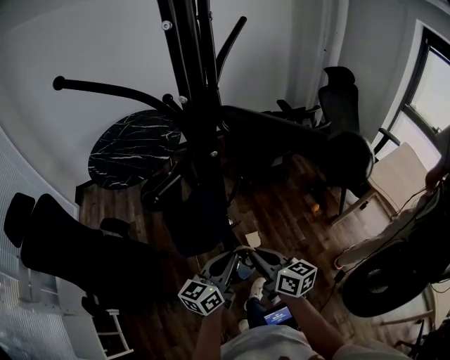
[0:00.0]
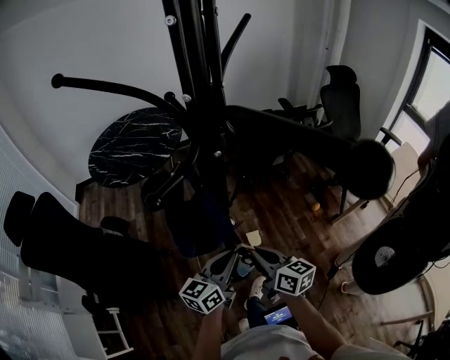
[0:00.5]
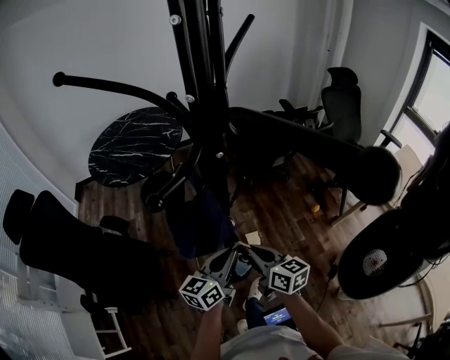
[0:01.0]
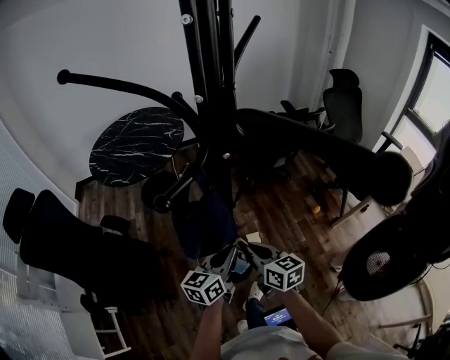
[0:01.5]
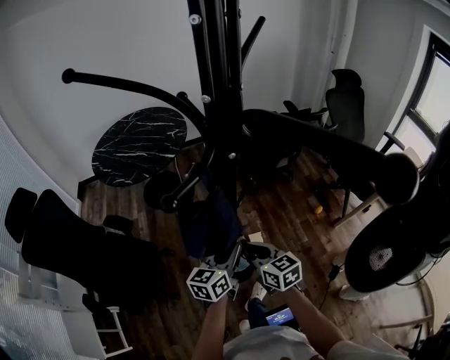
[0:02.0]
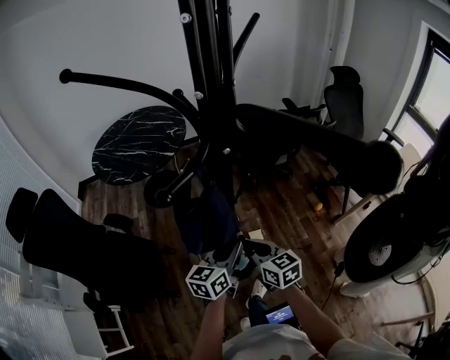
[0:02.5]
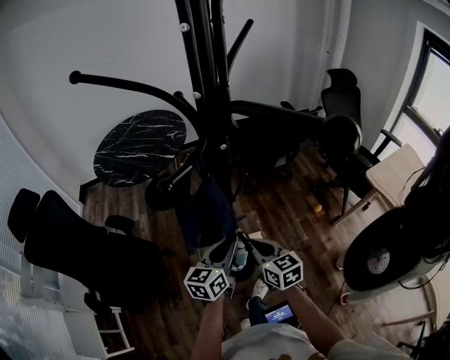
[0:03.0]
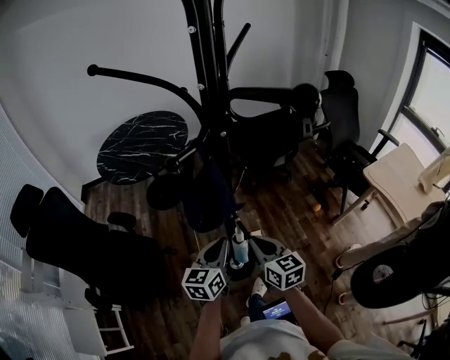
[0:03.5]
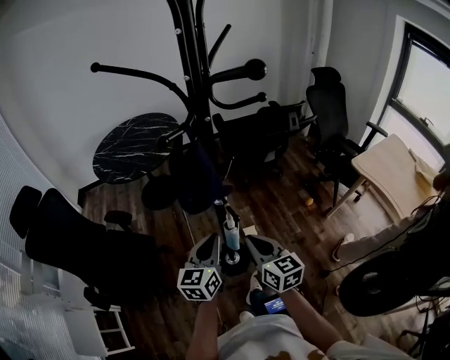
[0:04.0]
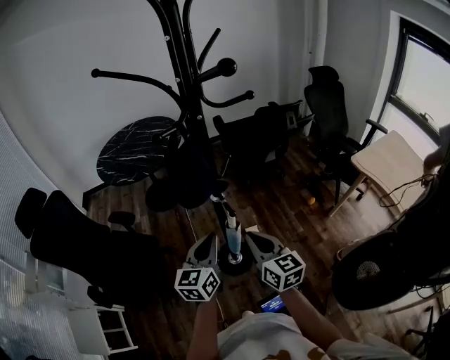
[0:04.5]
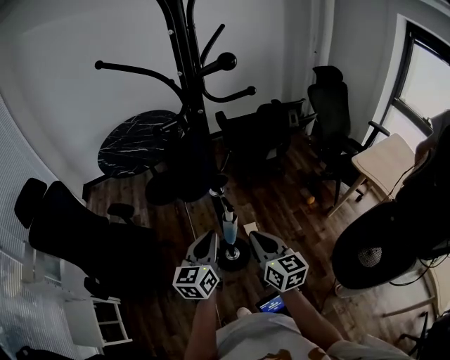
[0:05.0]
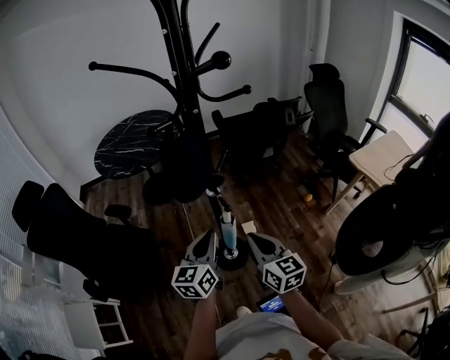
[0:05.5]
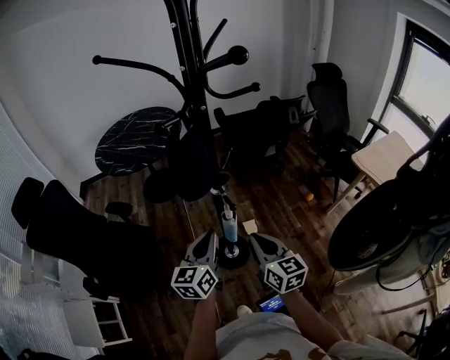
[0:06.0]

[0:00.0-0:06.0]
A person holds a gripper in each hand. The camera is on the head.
0:00.0 to 0:02.0: The left gripper moves roughly 5 cm. Meanwhile the right gripper moves about 5 cm.
0:02.0 to 0:04.0: Both grippers travel together backward and upward, approximately 10 cm.
0:04.0 to 0:06.0: The grippers make only small movements.

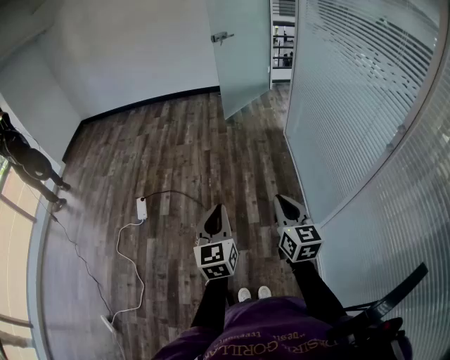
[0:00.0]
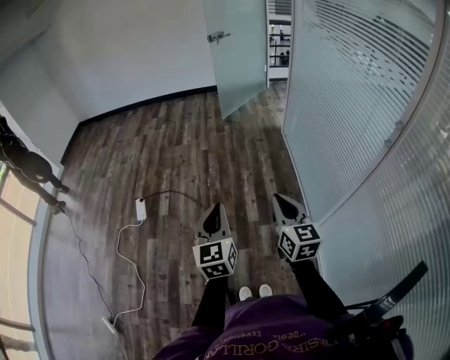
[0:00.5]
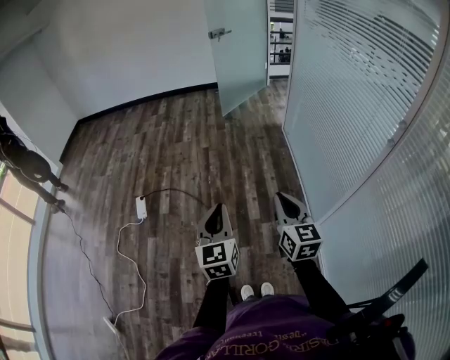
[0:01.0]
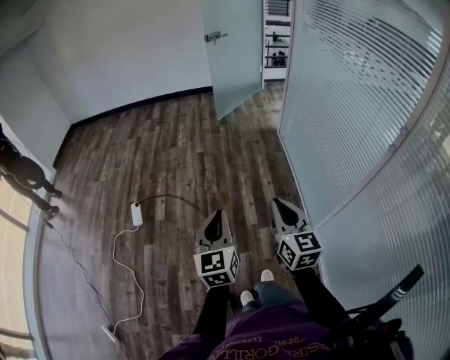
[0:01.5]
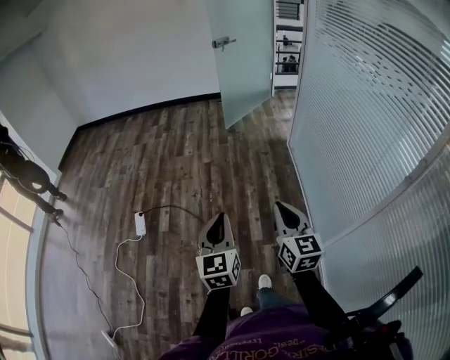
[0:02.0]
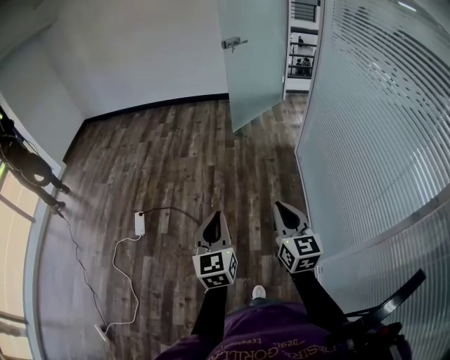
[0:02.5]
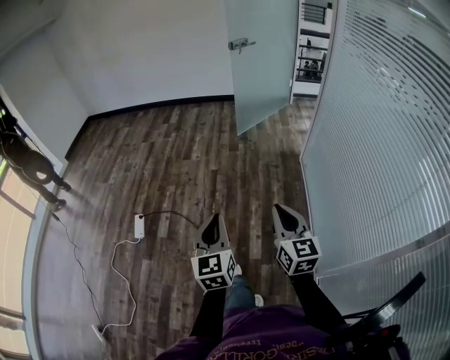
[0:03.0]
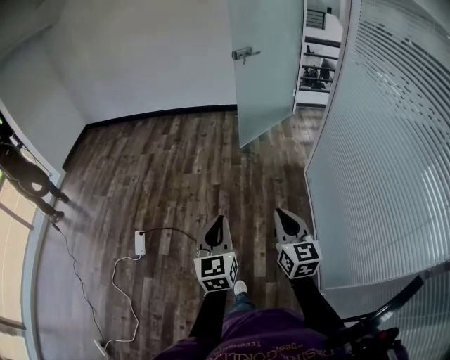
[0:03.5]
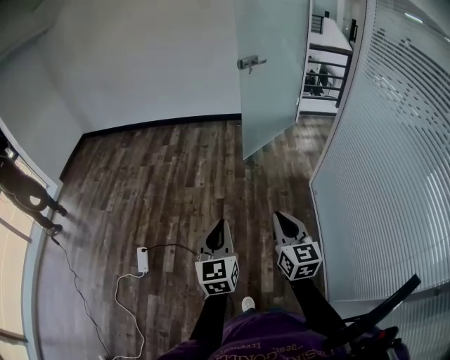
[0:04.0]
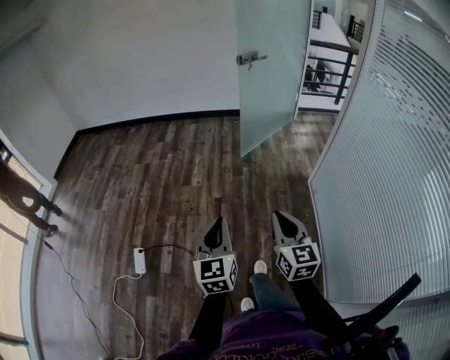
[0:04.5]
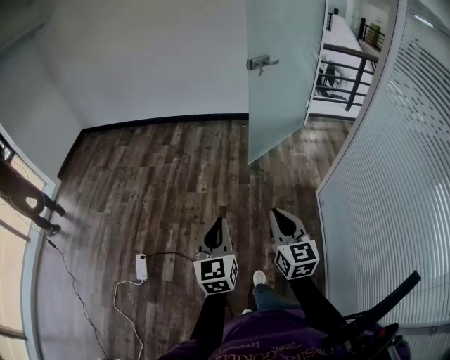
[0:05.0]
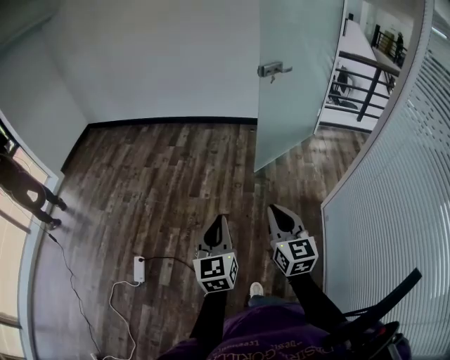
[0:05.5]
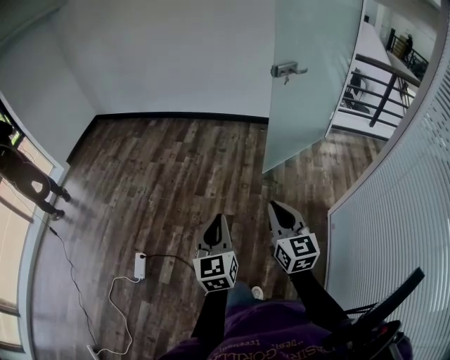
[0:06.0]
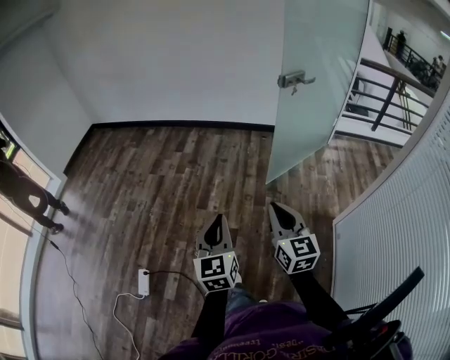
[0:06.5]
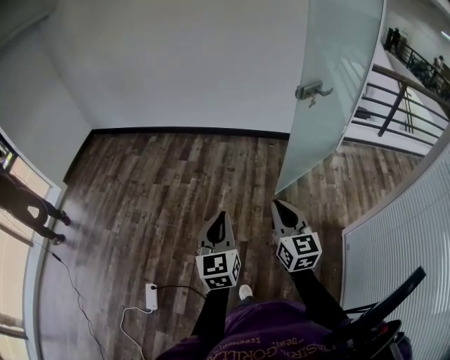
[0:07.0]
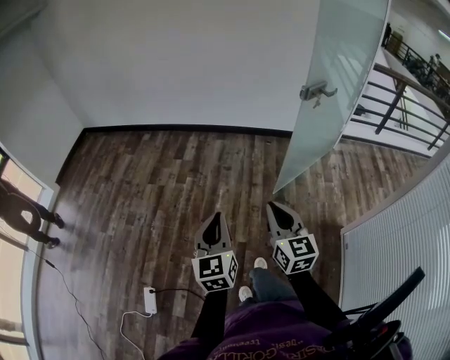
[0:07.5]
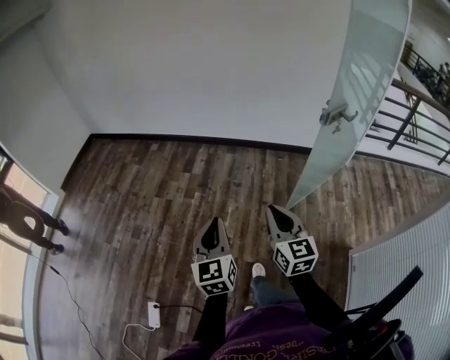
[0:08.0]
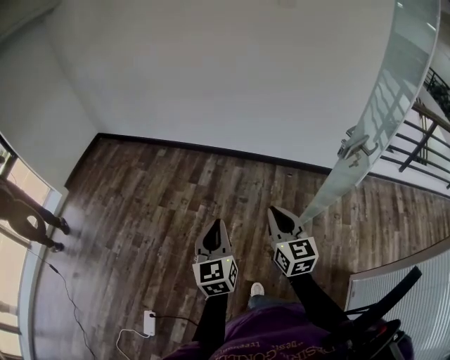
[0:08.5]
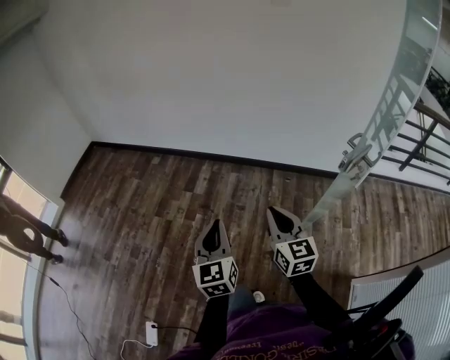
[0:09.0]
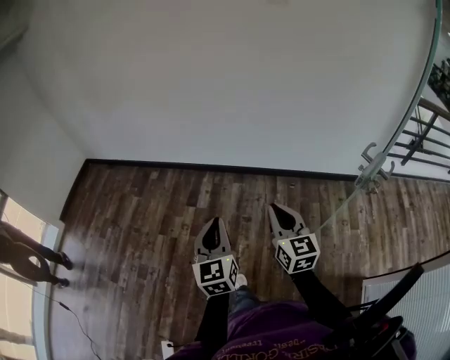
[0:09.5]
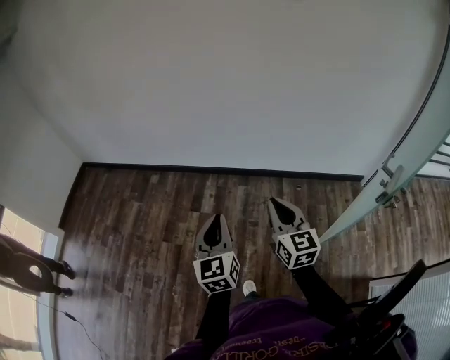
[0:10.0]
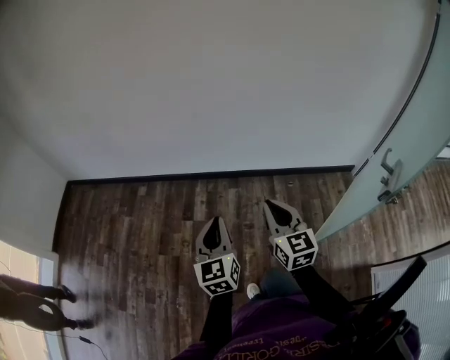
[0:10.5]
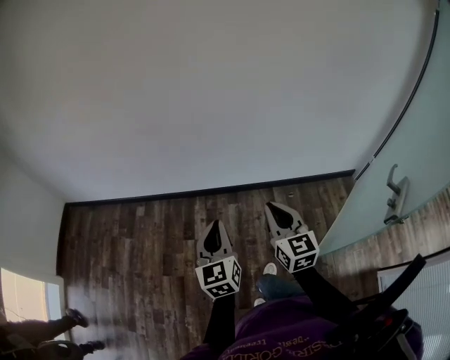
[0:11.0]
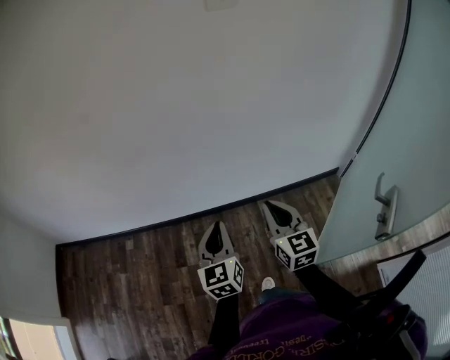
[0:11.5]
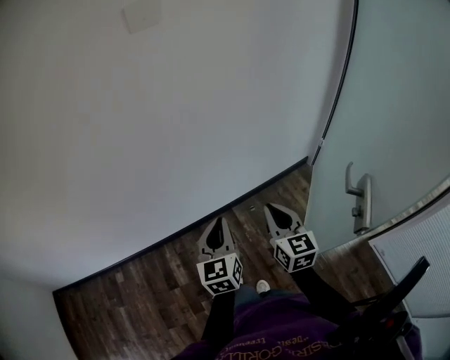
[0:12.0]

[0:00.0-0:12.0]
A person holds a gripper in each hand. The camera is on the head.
0:00.0 to 0:02.0: Both grippers move forward, about 10 cm.
0:02.0 to 0:04.0: Both grippers move forward, some 35 cm.
0:04.0 to 0:06.0: Both grippers move forward, about 30 cm.
0:06.0 to 0:08.0: The pair of grippers is taken forward, roughly 40 cm.
0:08.0 to 0:10.0: Both grippers are carried forward, some 40 cm.
0:10.0 to 0:12.0: The left gripper moves some 40 cm, and rotates some 30 degrees. The right gripper shifts by some 30 cm, and changes its angle by about 30 degrees.

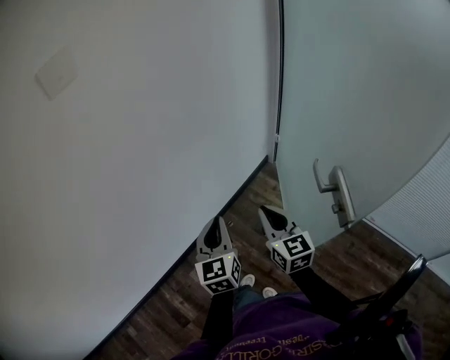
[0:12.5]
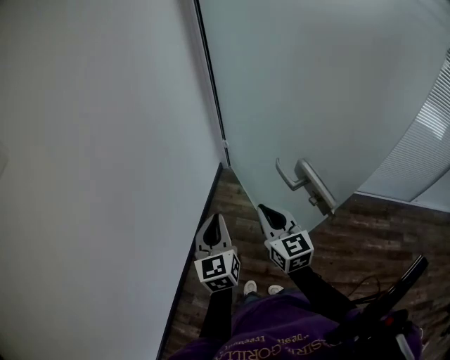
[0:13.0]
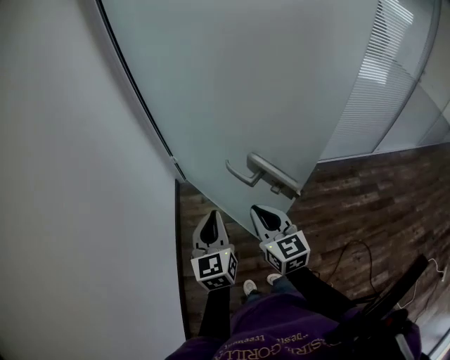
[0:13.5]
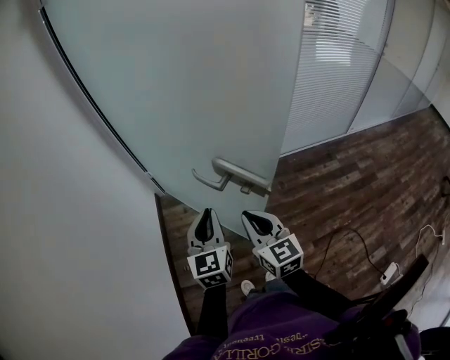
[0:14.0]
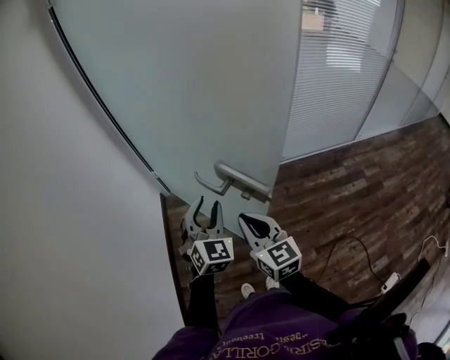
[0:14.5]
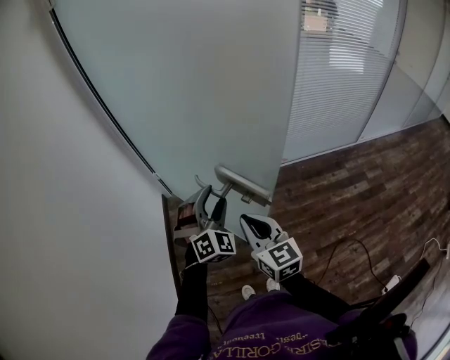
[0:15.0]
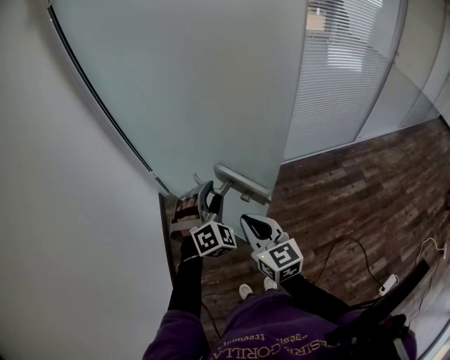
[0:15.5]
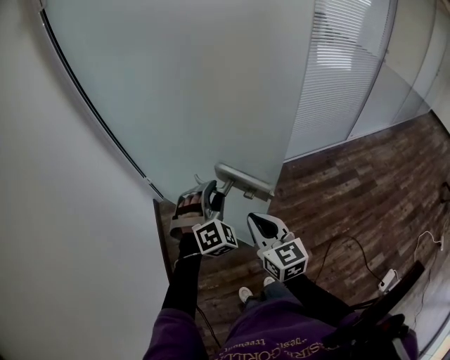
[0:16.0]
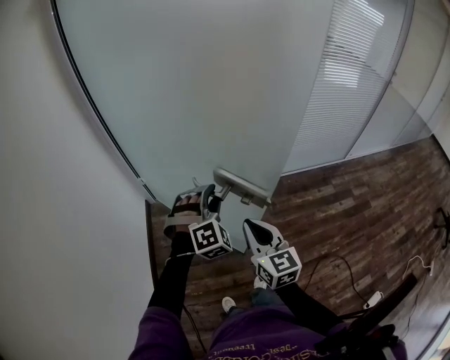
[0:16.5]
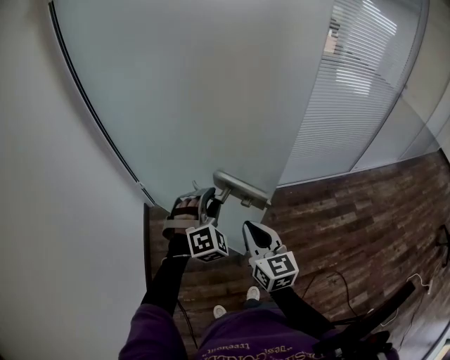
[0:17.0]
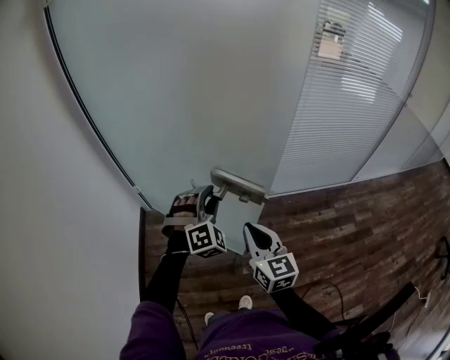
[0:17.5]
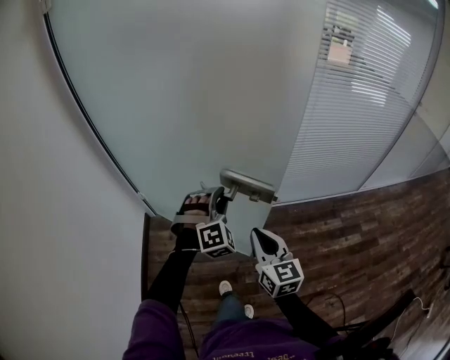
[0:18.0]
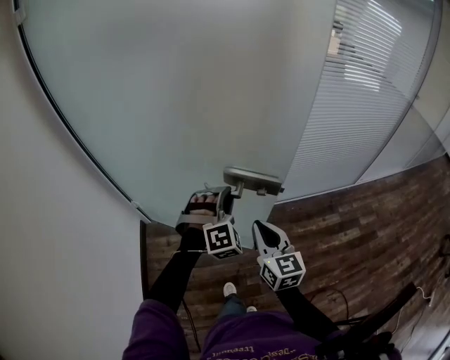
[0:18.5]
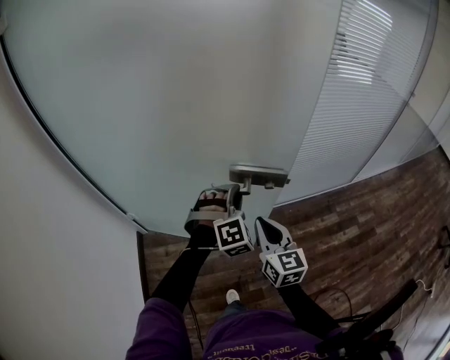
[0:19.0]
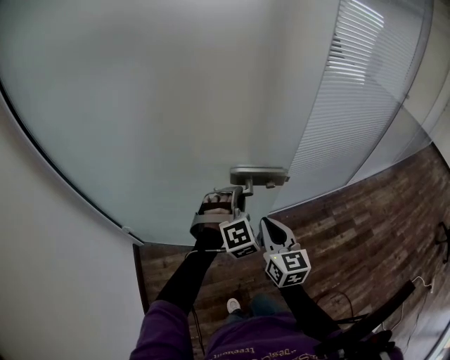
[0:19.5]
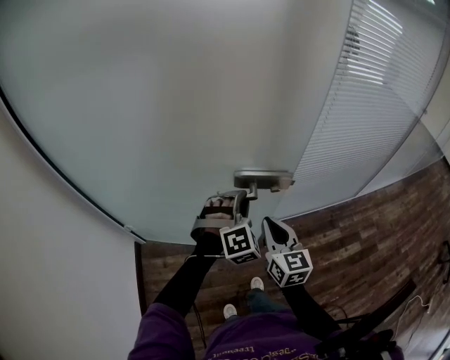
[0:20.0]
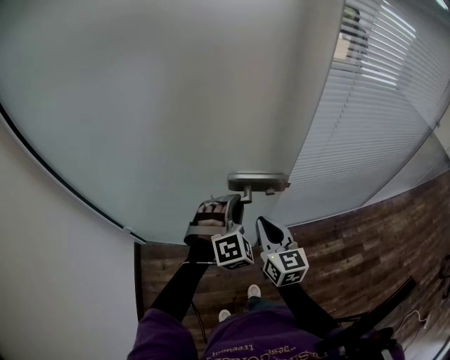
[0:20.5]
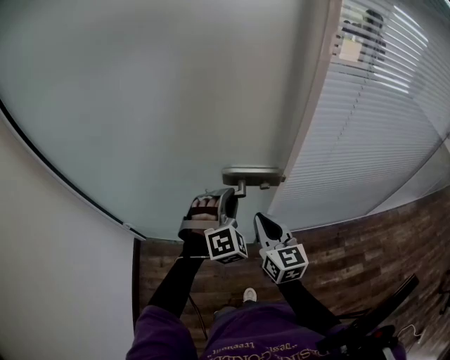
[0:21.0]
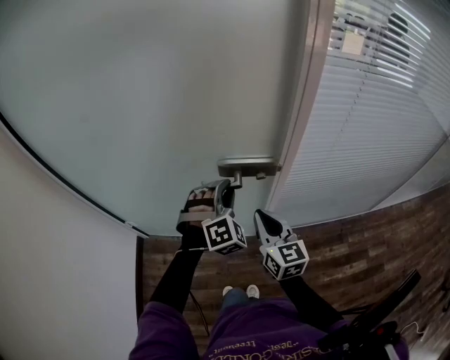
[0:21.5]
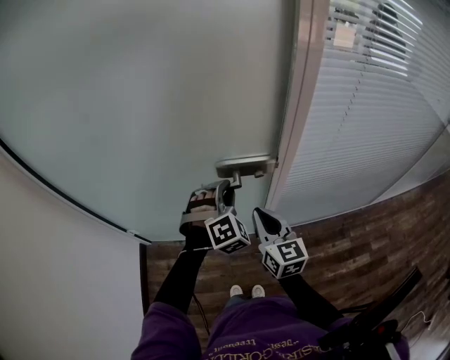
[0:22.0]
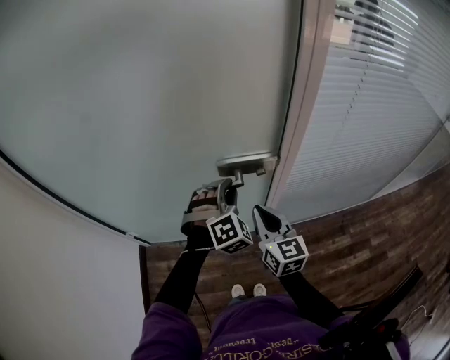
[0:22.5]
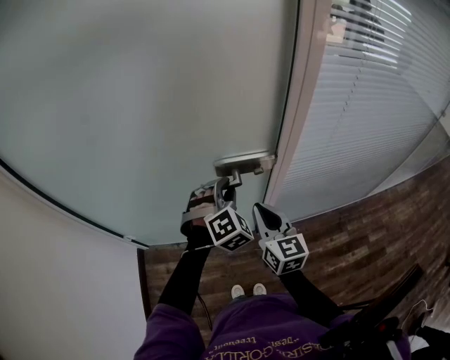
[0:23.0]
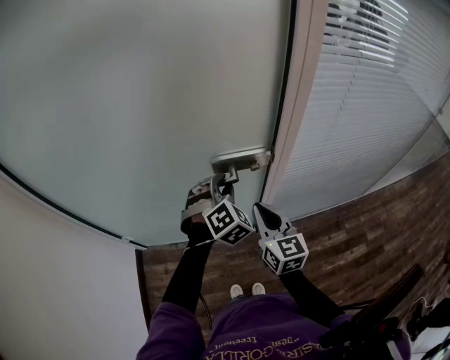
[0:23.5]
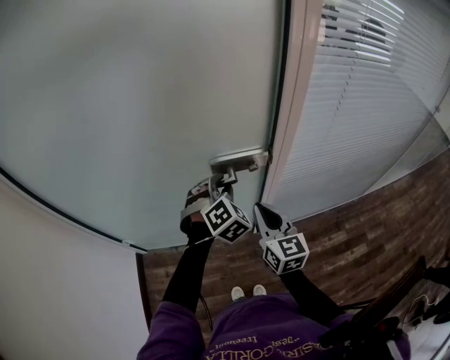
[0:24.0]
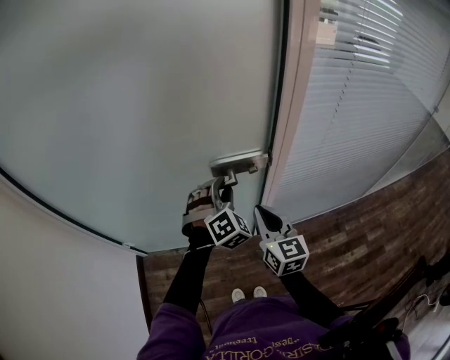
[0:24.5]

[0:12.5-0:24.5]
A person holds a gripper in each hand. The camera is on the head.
0:12.5 to 0:14.5: The right gripper moves roughly 15 cm, and changes its angle by roughly 50 degrees; the left gripper ends up some 30 cm from where it was, turns by about 70 degrees, and opens.
0:14.5 to 0:16.5: The right gripper travels to the right by some 5 cm; the left gripper goes some 10 cm to the right and forward, and swivels about 40 degrees.
0:16.5 to 0:18.5: The grippers both shift forward and to the right by some 25 cm.
0:18.5 to 0:20.5: Both grippers move forward, about 20 cm.
0:20.5 to 0:22.5: The two grippers go roughly 10 cm forward.
0:22.5 to 0:24.5: The grippers move only a little.
